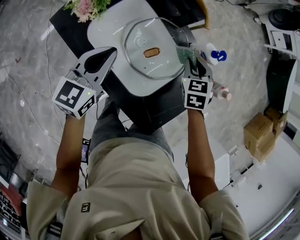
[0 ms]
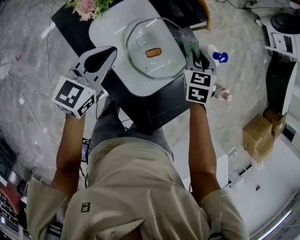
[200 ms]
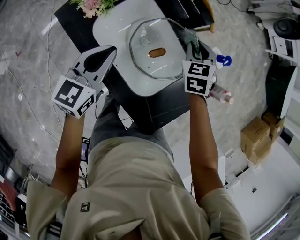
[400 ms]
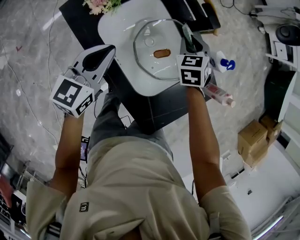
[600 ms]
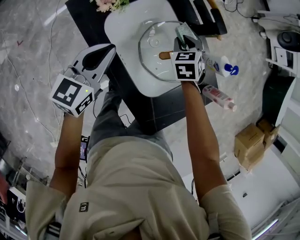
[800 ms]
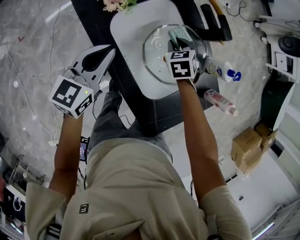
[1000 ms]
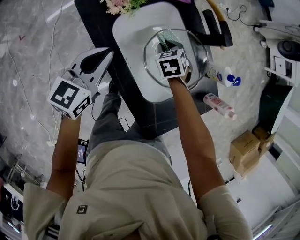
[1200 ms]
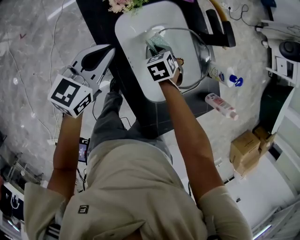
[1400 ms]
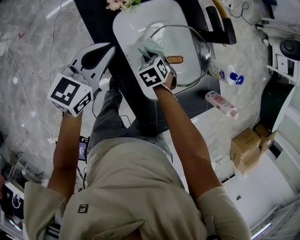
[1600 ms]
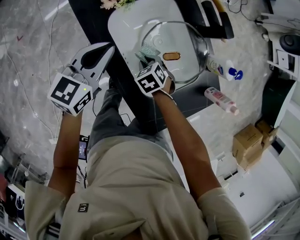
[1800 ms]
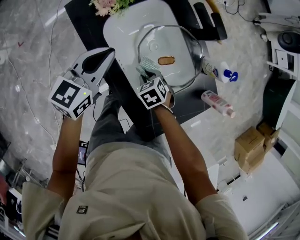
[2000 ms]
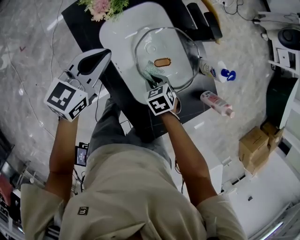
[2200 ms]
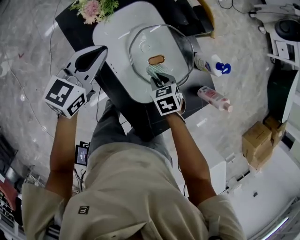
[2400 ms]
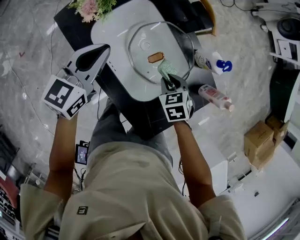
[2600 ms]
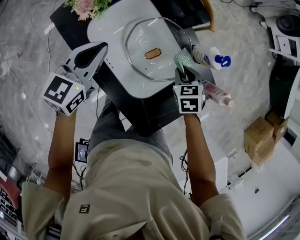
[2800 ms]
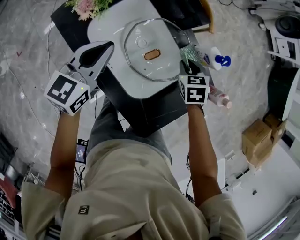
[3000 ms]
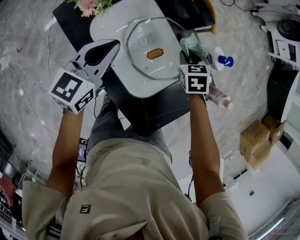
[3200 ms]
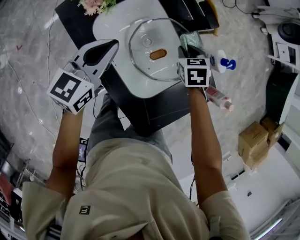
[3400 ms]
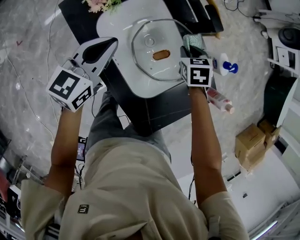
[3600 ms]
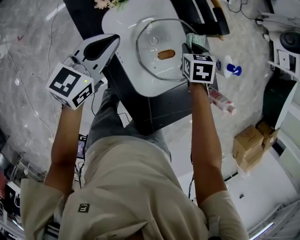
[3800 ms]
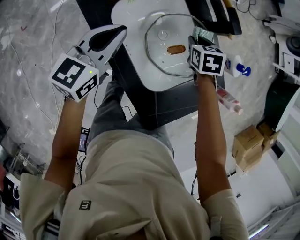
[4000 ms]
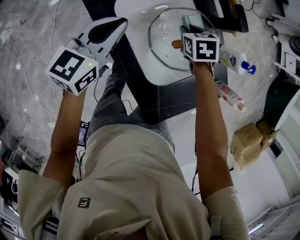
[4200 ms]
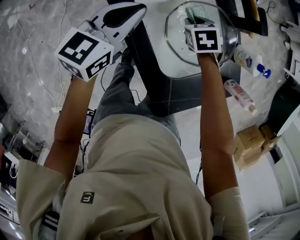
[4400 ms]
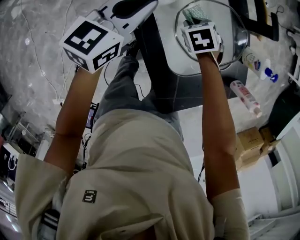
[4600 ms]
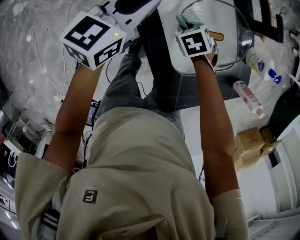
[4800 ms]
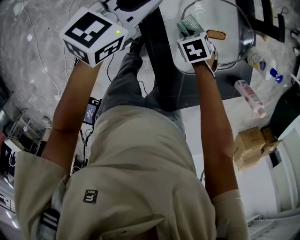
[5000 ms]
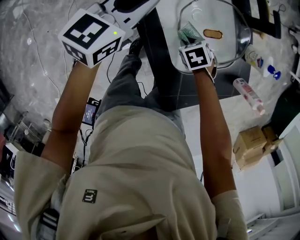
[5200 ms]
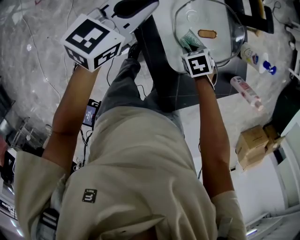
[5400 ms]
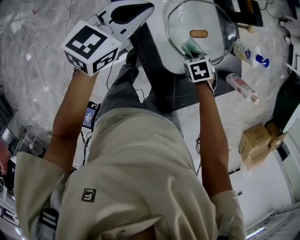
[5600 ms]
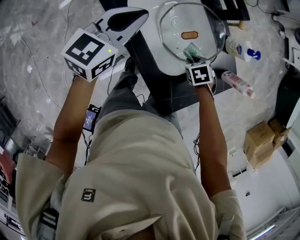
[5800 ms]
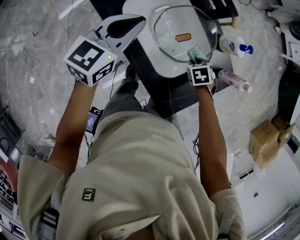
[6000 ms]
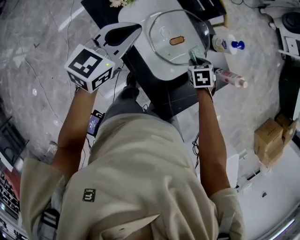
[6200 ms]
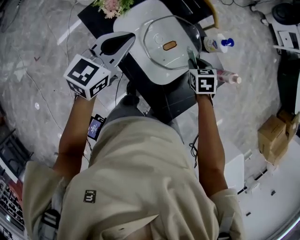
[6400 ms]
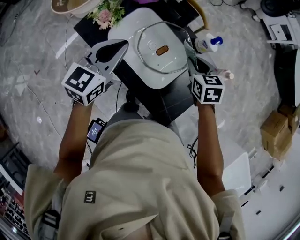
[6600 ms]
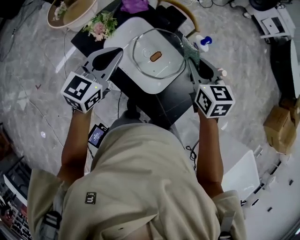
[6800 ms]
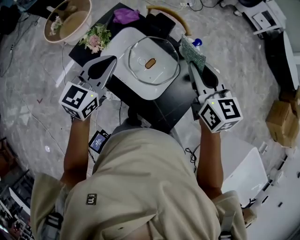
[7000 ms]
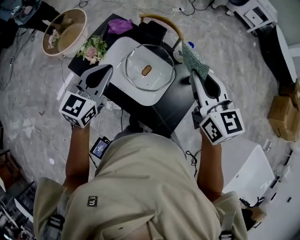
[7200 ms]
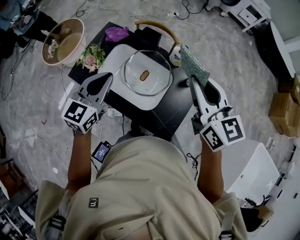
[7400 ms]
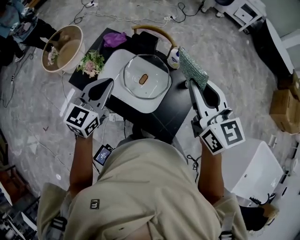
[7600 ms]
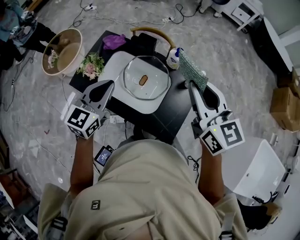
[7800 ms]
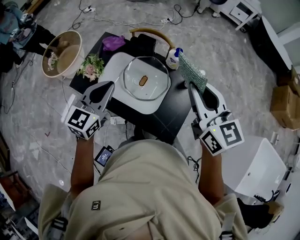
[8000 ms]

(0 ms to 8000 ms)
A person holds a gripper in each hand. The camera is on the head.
0 ms - 1600 ms: The right gripper shifts by approximately 30 cm, and turns by some 40 degrees, while the left gripper ends up about 10 cm from where it was.
1600 ms - 3200 ms: The right gripper shifts by about 25 cm, and turns by approximately 30 degrees. Meanwhile the left gripper ends up approximately 10 cm from where it was.
3200 ms - 4800 ms: The right gripper shifts by about 25 cm, and turns by approximately 30 degrees. Meanwhile the left gripper ends up roughly 10 cm from where it was.
4800 ms - 6400 ms: The right gripper changes place by about 25 cm, and swivels approximately 40 degrees; the left gripper goes approximately 15 cm upward.
6400 ms - 8000 ms: The left gripper moves upward, about 10 cm, while the right gripper travels upward by roughly 35 cm, and points its fingers roughly 50 degrees further upward.

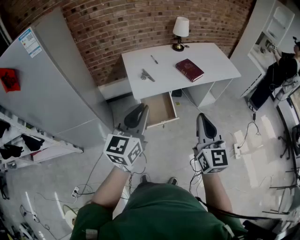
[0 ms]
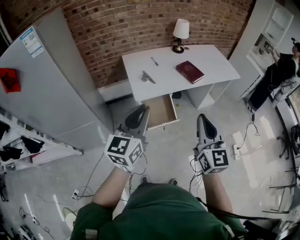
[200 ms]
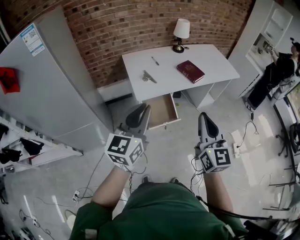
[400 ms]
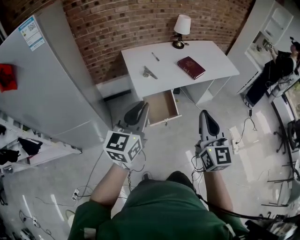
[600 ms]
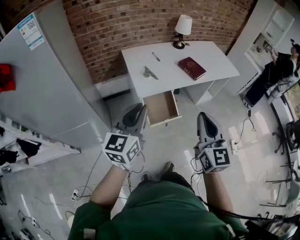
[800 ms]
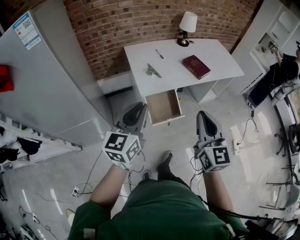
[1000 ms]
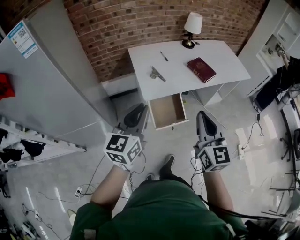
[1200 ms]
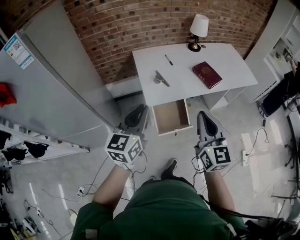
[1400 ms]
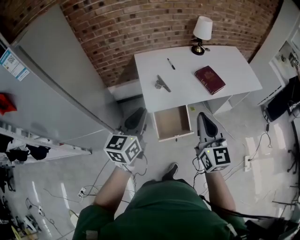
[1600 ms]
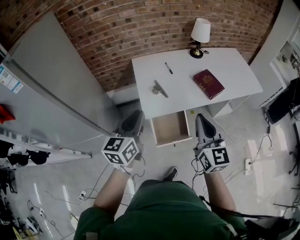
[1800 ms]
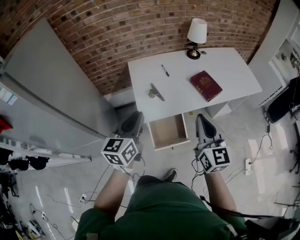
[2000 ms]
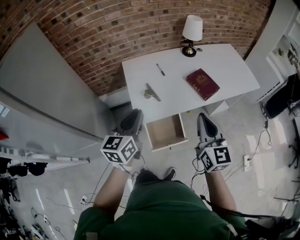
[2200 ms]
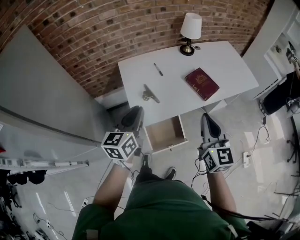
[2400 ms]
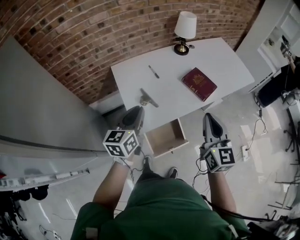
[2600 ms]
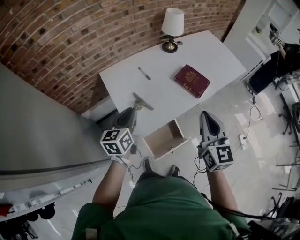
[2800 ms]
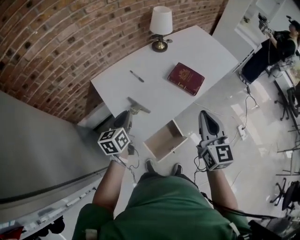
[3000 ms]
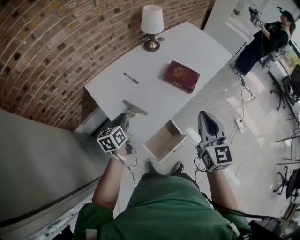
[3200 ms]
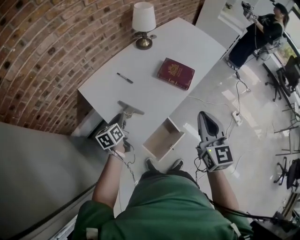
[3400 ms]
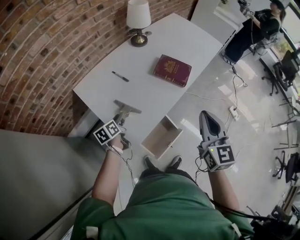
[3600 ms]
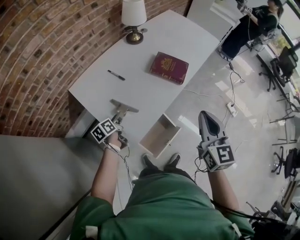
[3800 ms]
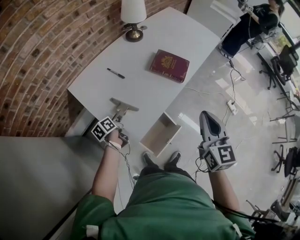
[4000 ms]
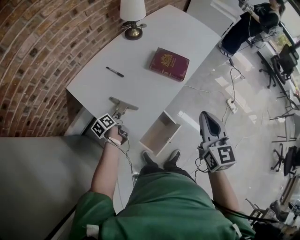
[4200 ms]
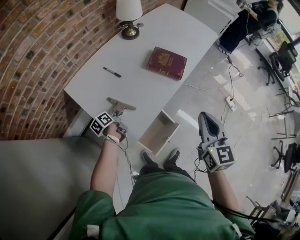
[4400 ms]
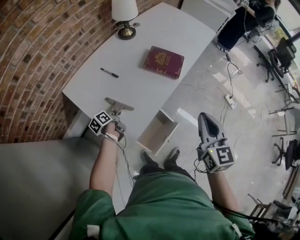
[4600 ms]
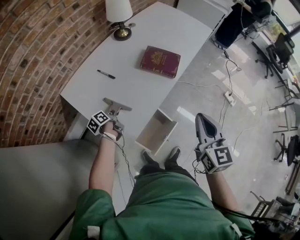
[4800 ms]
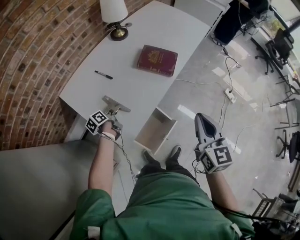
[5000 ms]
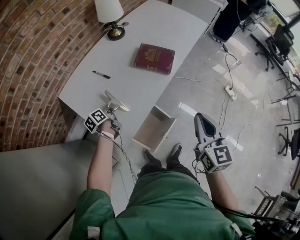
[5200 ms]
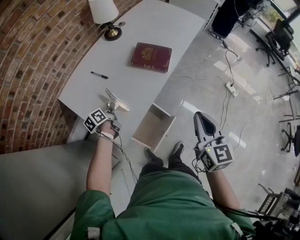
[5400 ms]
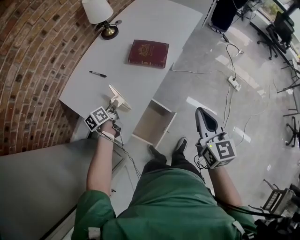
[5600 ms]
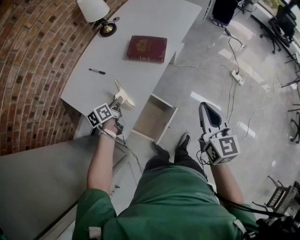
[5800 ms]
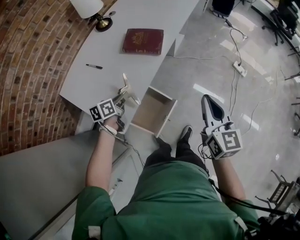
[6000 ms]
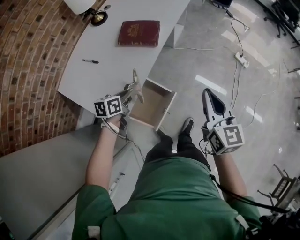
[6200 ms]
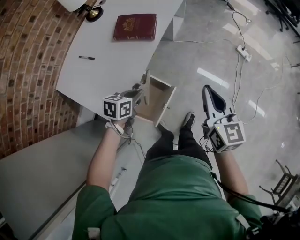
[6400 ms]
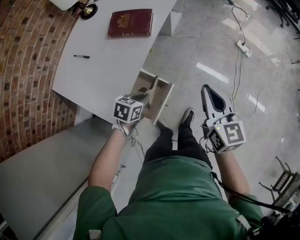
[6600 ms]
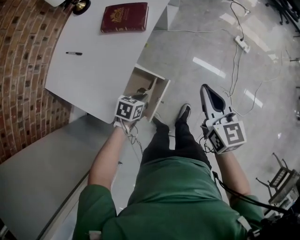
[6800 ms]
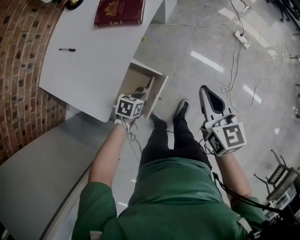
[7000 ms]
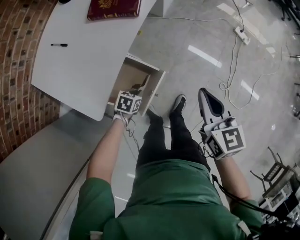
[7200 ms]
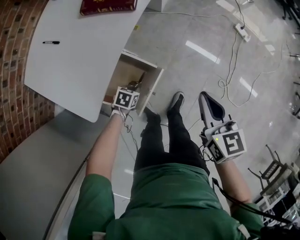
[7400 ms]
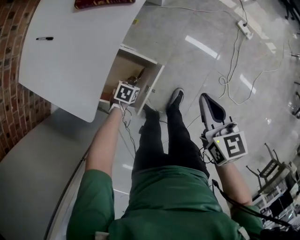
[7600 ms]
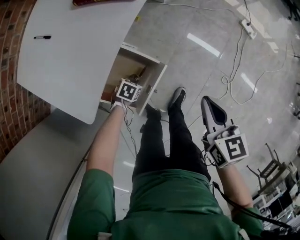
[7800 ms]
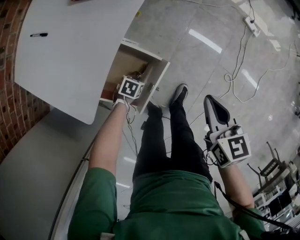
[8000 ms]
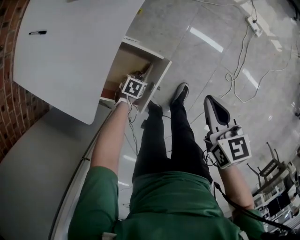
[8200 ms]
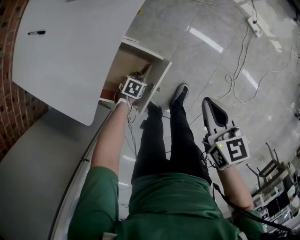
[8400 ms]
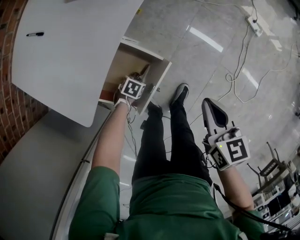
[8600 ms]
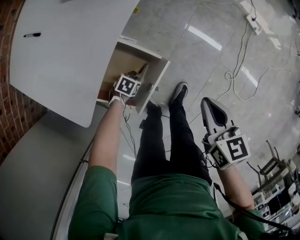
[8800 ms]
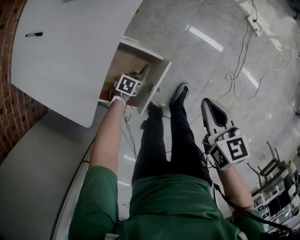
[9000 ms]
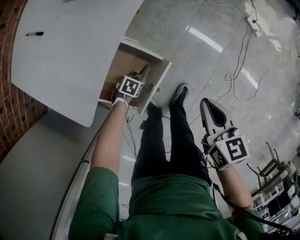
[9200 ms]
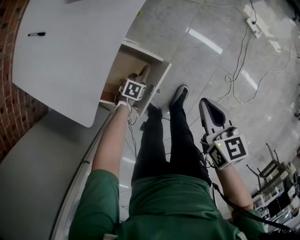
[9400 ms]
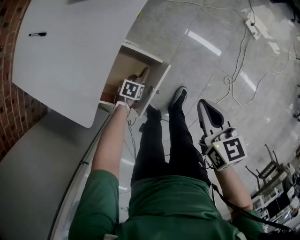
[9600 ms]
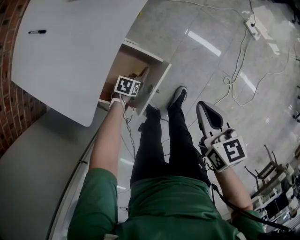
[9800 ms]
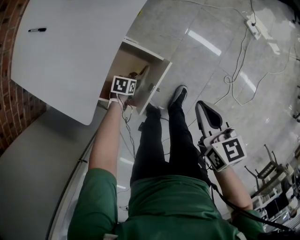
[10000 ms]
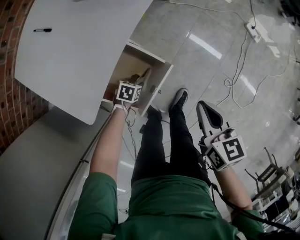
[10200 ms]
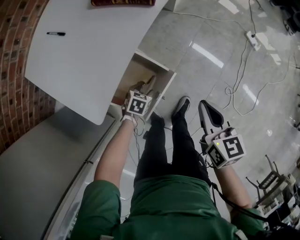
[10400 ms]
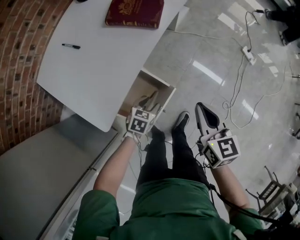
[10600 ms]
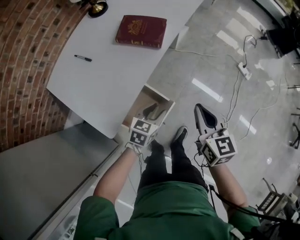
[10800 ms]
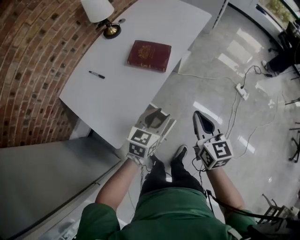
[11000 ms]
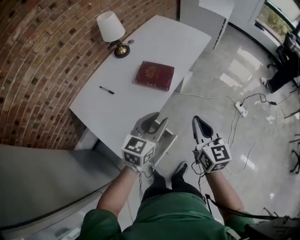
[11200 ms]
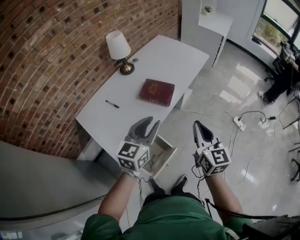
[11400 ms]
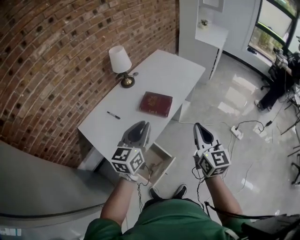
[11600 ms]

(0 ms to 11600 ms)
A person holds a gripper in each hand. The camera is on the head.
0 ms - 1400 ms: The right gripper travels forward and to the left by roughly 15 cm. Meanwhile the left gripper shifts about 15 cm forward, to the left and downward.
1400 ms - 2800 ms: The right gripper travels forward by approximately 20 cm. Meanwhile the left gripper goes some 35 cm forward and downward.
2800 ms - 4400 ms: The left gripper goes about 30 cm downward and forward, turns by approximately 50 degrees, and opens. The right gripper moves downward, about 5 cm, and swivels approximately 20 degrees.
4400 ms - 5800 ms: The right gripper moves to the right, some 10 cm; the left gripper heads to the right and upward, covering roughly 15 cm, turns by about 30 degrees, and closes up.
5800 ms - 7200 ms: The right gripper goes about 15 cm downward and to the right. The left gripper moves downward and to the right, about 30 cm, and angles its fingers downward, by about 30 degrees.
7200 ms - 8800 ms: The grippers both shift downward by roughly 15 cm.
8800 ms - 10200 ms: The left gripper opens.
10200 ms - 11600 ms: The right gripper is displaced upward by some 40 cm, and tilts its fingers approximately 30 degrees upward. The left gripper moves upward, about 70 cm, tilts its fingers about 60 degrees upward, and closes up.

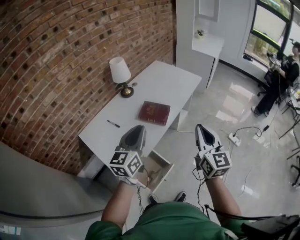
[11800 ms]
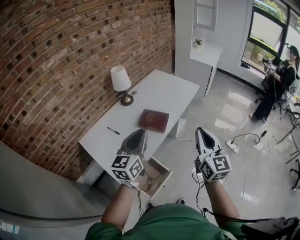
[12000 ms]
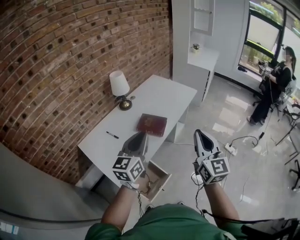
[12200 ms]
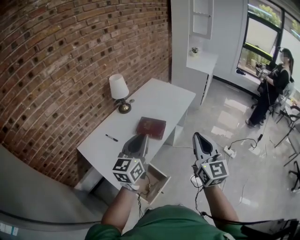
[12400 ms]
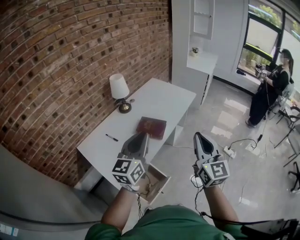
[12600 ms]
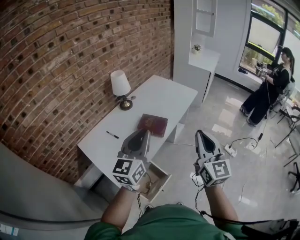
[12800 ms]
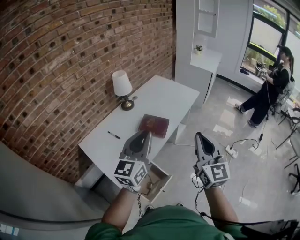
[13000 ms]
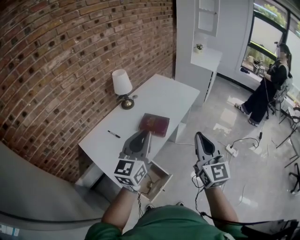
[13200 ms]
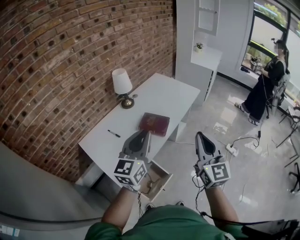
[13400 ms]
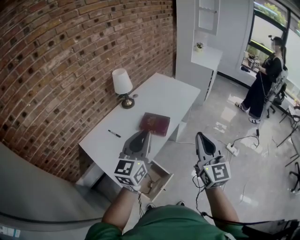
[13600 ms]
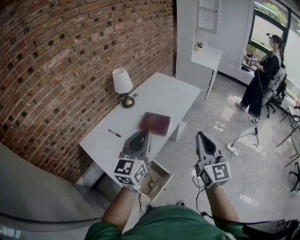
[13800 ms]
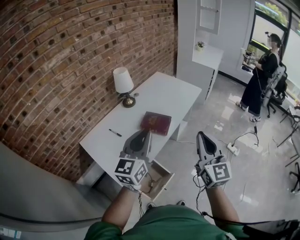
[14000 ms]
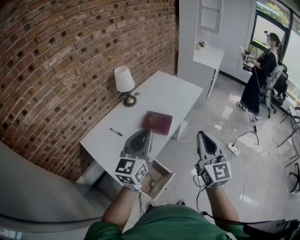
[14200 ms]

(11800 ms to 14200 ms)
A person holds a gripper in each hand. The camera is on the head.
11800 ms - 13000 ms: Both grippers travel together upward, roughly 5 cm.
13000 ms - 14200 ms: The grippers move only a little.

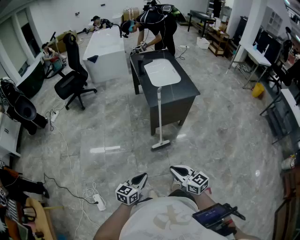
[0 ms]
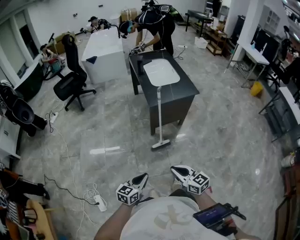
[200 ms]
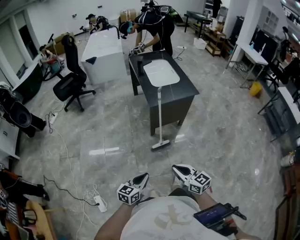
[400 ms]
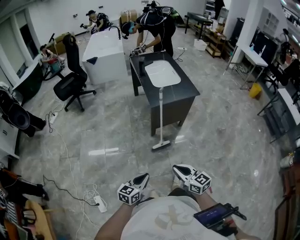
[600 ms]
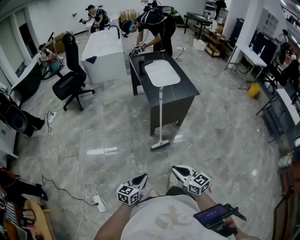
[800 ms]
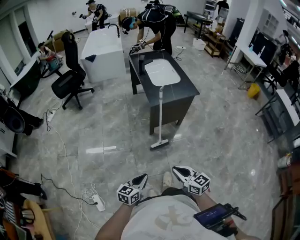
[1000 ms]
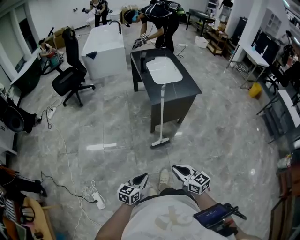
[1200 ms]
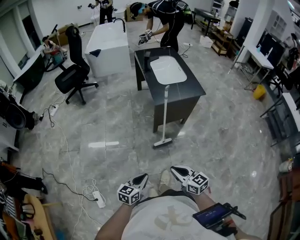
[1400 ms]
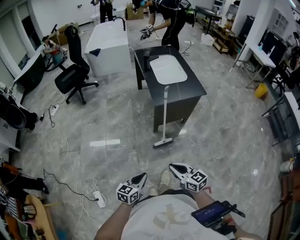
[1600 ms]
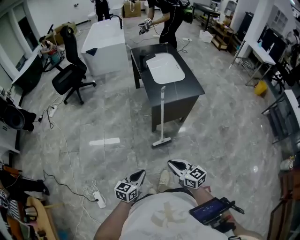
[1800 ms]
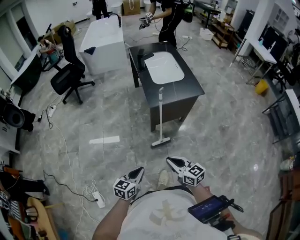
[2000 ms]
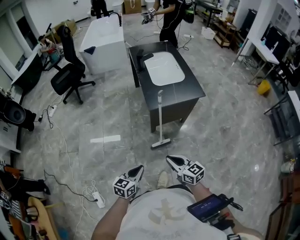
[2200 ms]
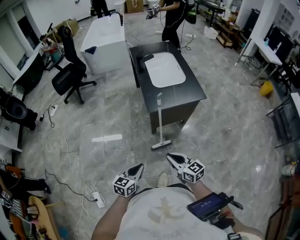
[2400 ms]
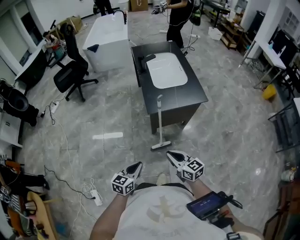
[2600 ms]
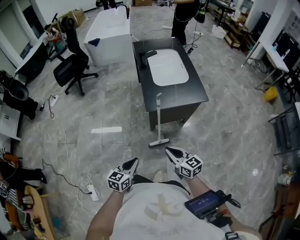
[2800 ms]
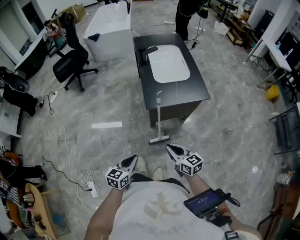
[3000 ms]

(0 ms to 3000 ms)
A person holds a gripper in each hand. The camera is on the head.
0 ms - 1600 ms: There are only small adjustments of the grippers.
1600 ms - 3000 ms: The right gripper heads forward and to the right, covering roughly 20 cm. The left gripper goes some 15 cm forward.
